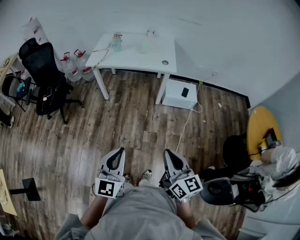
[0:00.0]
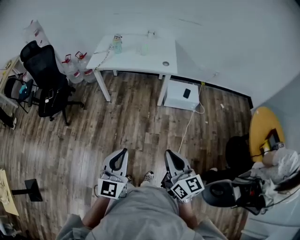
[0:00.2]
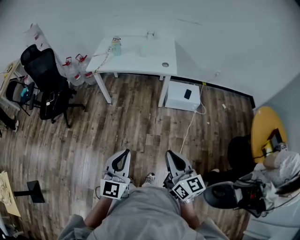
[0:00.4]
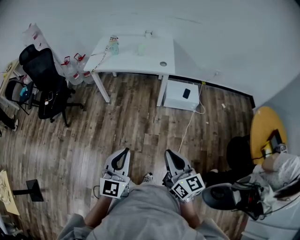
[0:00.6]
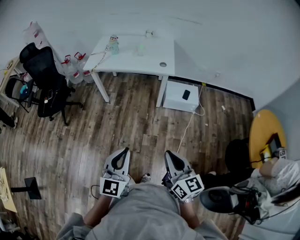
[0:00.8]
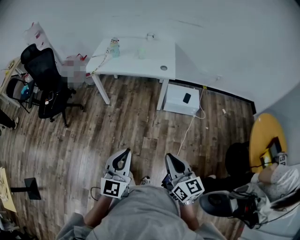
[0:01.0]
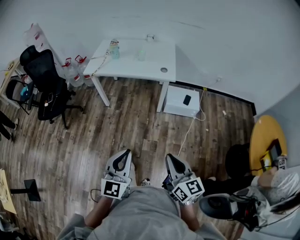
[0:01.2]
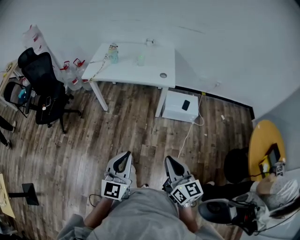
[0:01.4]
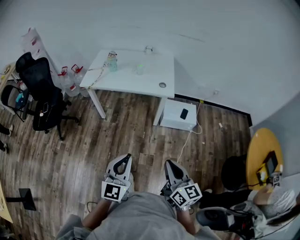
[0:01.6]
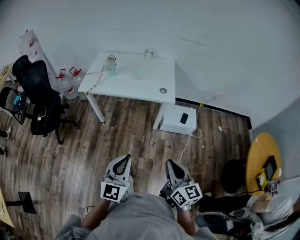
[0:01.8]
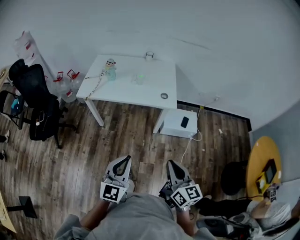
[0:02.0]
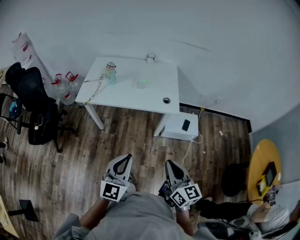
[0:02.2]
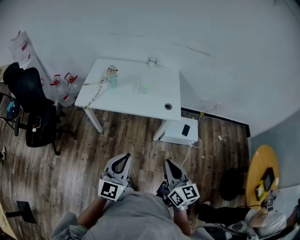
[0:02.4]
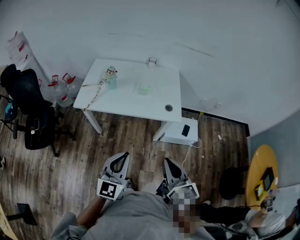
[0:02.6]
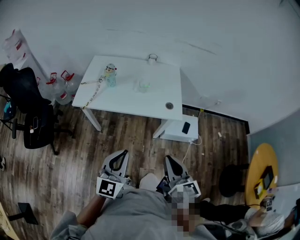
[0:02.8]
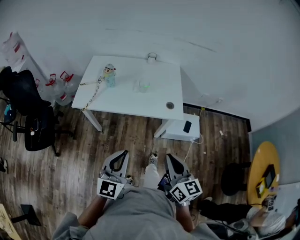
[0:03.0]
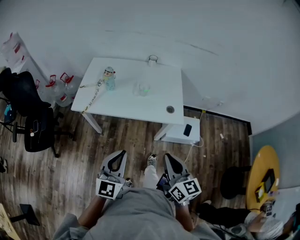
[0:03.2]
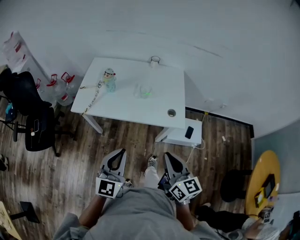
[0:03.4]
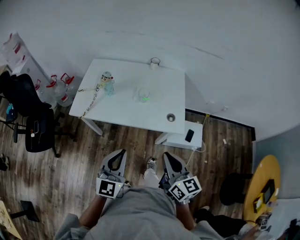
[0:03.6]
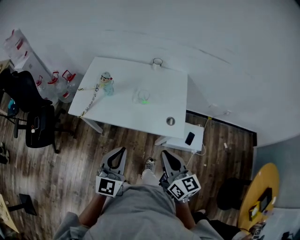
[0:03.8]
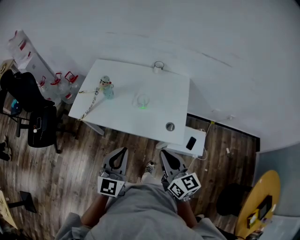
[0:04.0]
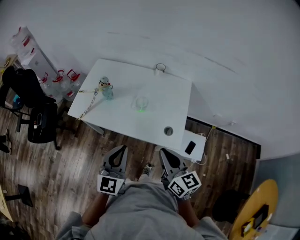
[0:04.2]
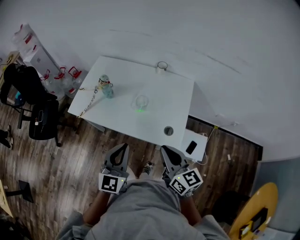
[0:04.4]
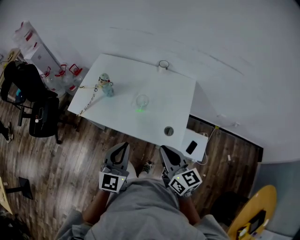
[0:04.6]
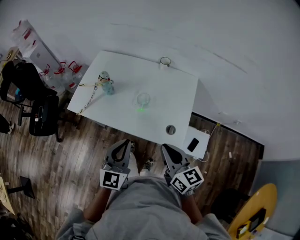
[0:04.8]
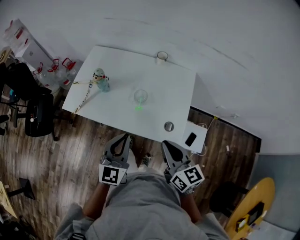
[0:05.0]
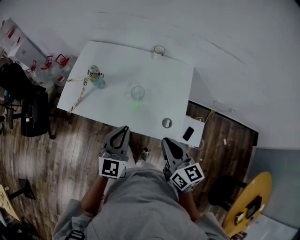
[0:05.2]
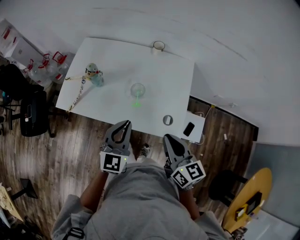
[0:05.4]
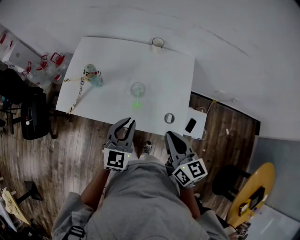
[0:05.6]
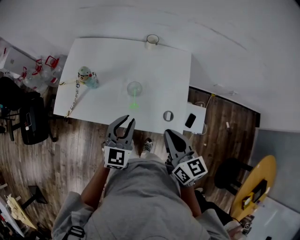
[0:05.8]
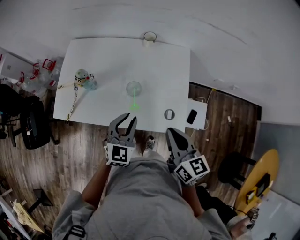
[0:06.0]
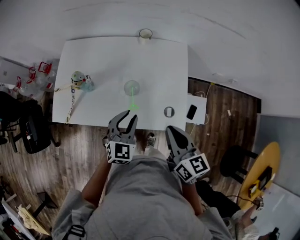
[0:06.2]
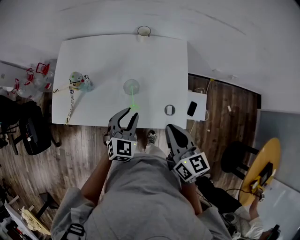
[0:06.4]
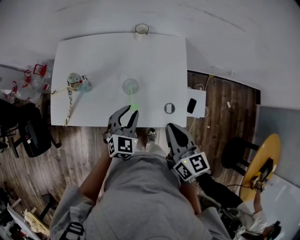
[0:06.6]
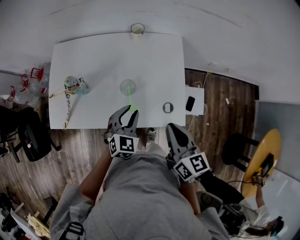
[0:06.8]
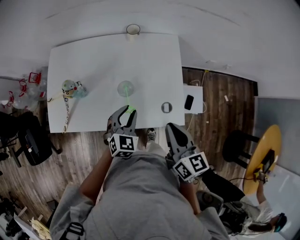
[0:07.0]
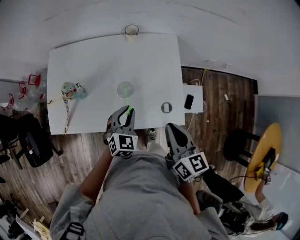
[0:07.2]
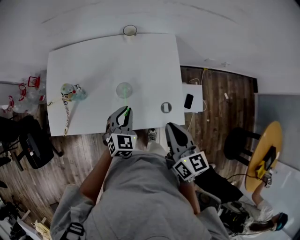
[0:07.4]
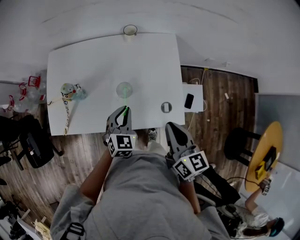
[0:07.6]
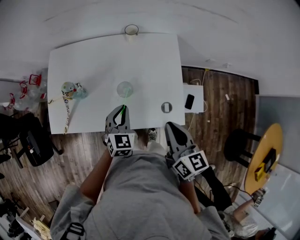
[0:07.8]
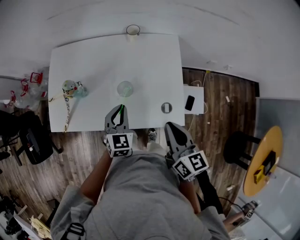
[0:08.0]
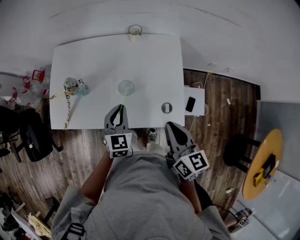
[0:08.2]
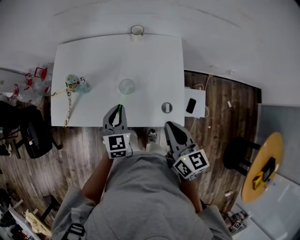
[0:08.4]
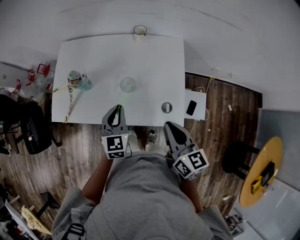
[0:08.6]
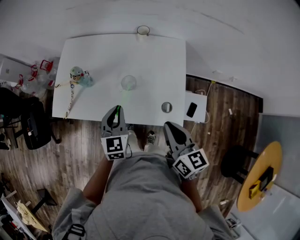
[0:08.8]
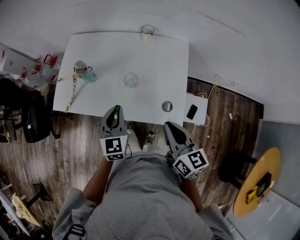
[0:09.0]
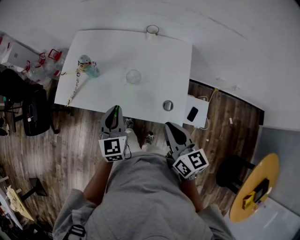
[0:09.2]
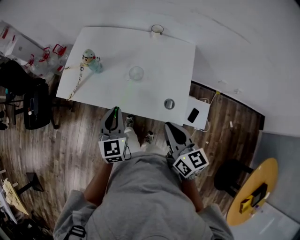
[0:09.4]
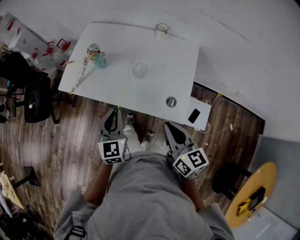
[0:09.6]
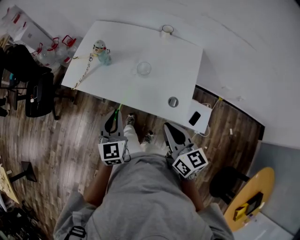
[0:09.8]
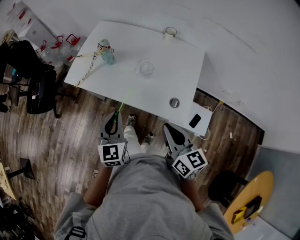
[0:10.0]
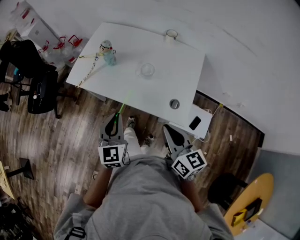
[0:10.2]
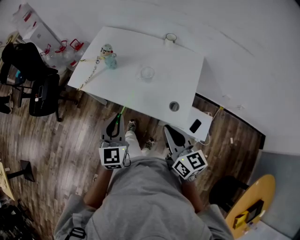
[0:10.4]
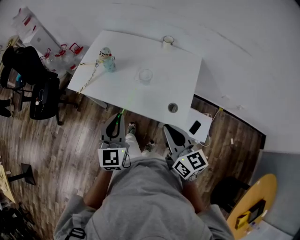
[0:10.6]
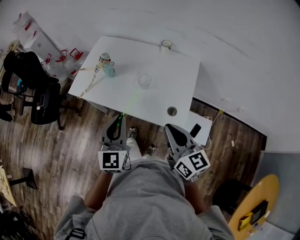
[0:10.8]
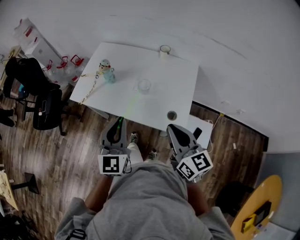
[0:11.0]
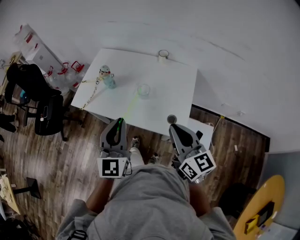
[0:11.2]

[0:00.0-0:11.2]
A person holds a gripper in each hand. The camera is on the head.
0:00.0 to 0:01.6: The grippers both shift forward and to the right by some 15 cm.
0:01.6 to 0:03.2: Both grippers move forward, about 25 cm.
0:03.2 to 0:04.8: The two grippers go about 20 cm forward and to the right. The right gripper rotates some 20 degrees.
0:04.8 to 0:06.4: The right gripper moves forward, roughly 5 cm, and turns by some 20 degrees; the left gripper travels forward and downward by about 15 cm, changes its angle by some 30 degrees, and opens.
0:06.4 to 0:08.0: The left gripper closes up.
0:08.0 to 0:09.6: The right gripper is displaced backward by roughly 5 cm, and rotates about 20 degrees. Meanwhile the left gripper heads backward, upward and to the left, covering approximately 15 cm, and swivels some 30 degrees.
0:09.6 to 0:11.2: The left gripper heads upward, covering about 15 cm, and rotates some 20 degrees; the right gripper is displaced upward by roughly 5 cm.

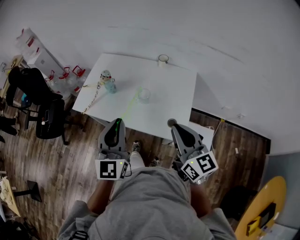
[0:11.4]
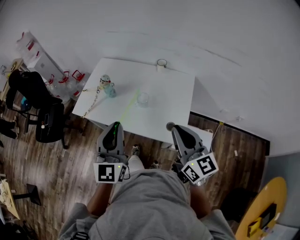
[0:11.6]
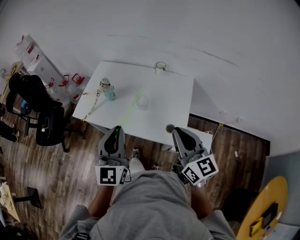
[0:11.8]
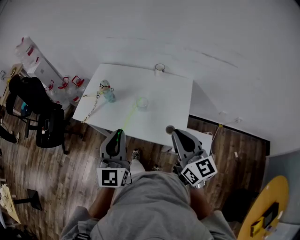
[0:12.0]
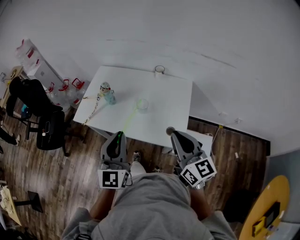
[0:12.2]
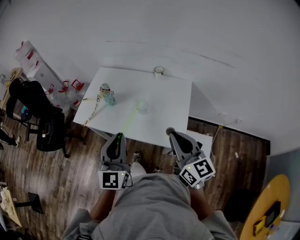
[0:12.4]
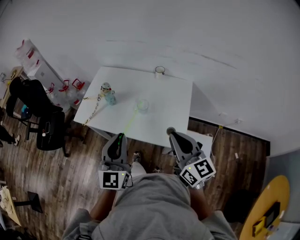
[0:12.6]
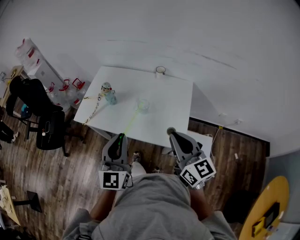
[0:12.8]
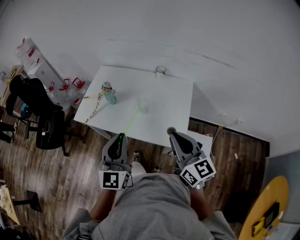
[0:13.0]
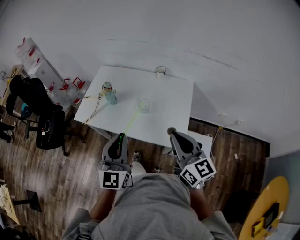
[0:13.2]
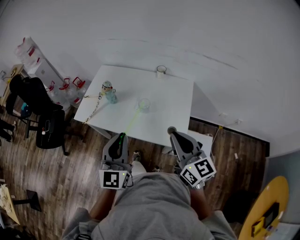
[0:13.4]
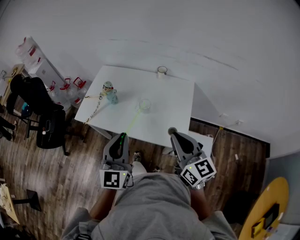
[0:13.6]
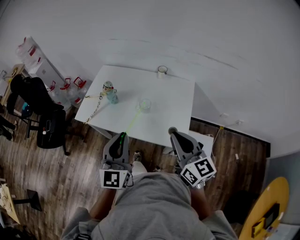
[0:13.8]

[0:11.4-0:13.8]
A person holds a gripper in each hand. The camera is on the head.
0:11.4 to 0:12.6: The grippers stay close to where they were, moving slightly.
0:12.6 to 0:13.8: Both grippers stay put.

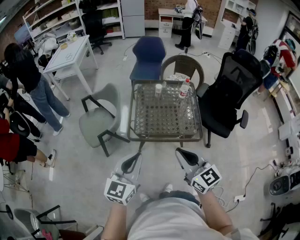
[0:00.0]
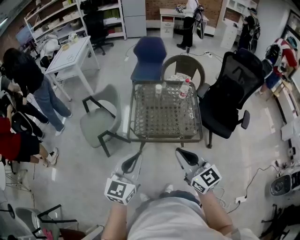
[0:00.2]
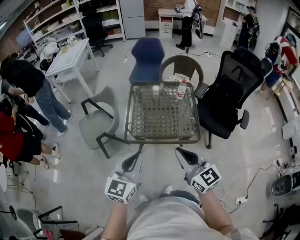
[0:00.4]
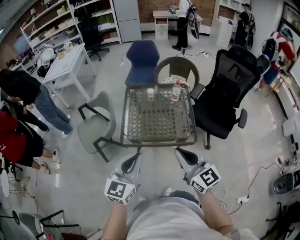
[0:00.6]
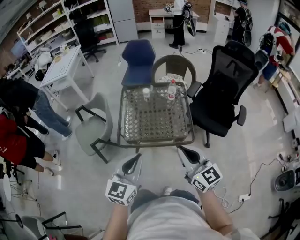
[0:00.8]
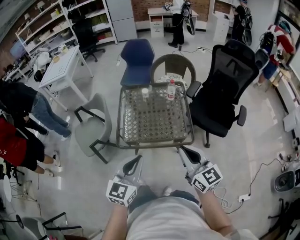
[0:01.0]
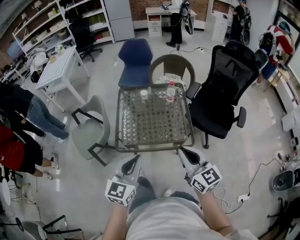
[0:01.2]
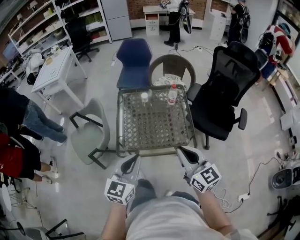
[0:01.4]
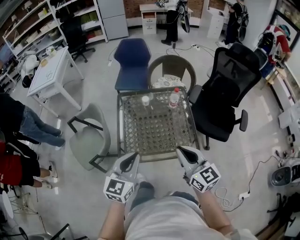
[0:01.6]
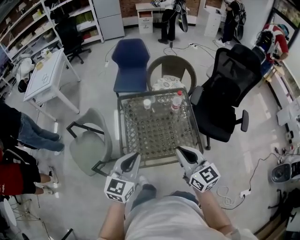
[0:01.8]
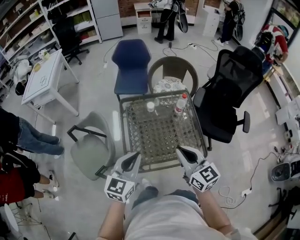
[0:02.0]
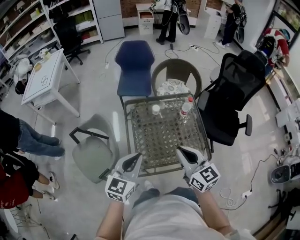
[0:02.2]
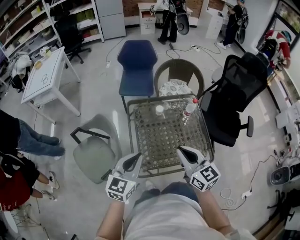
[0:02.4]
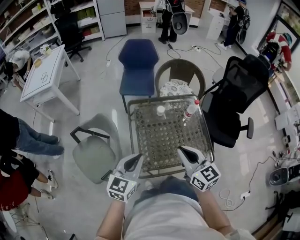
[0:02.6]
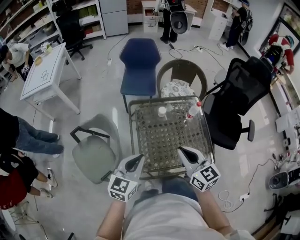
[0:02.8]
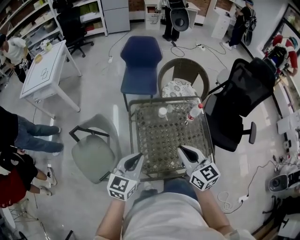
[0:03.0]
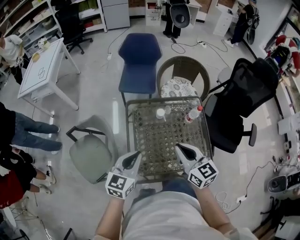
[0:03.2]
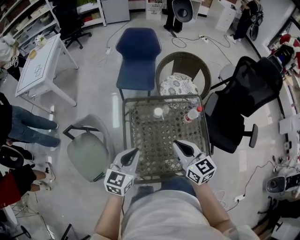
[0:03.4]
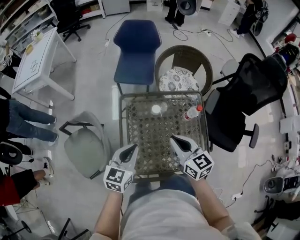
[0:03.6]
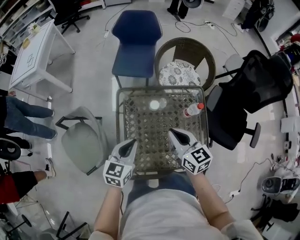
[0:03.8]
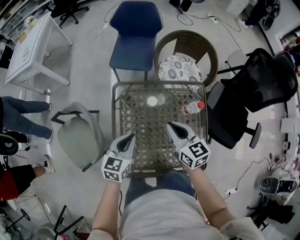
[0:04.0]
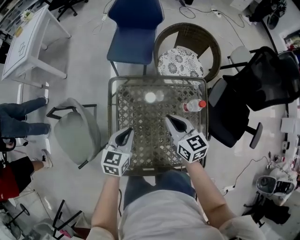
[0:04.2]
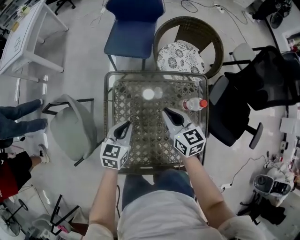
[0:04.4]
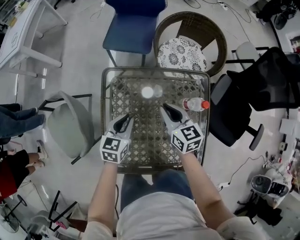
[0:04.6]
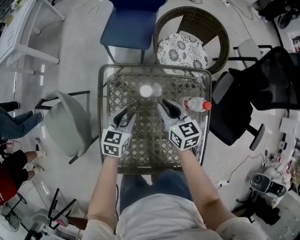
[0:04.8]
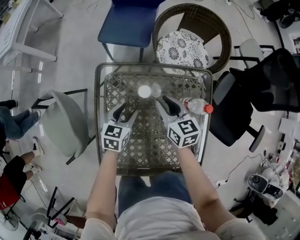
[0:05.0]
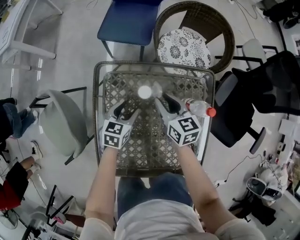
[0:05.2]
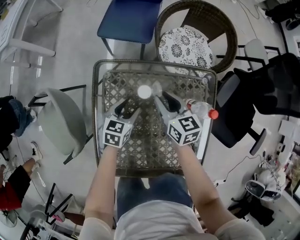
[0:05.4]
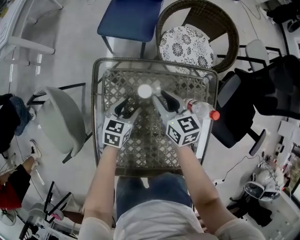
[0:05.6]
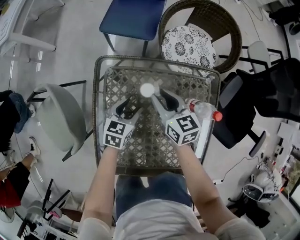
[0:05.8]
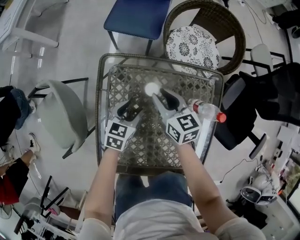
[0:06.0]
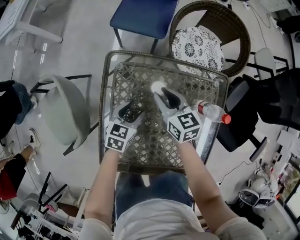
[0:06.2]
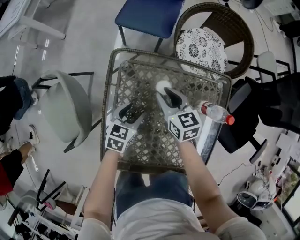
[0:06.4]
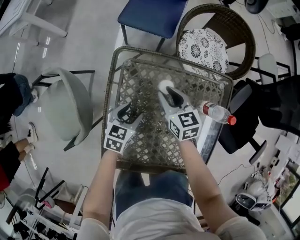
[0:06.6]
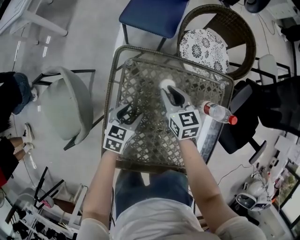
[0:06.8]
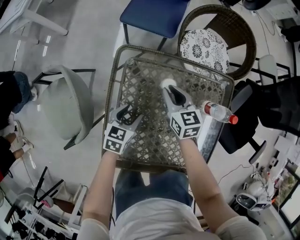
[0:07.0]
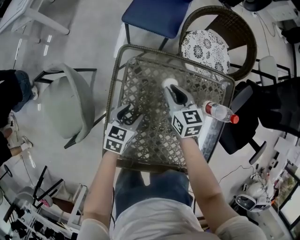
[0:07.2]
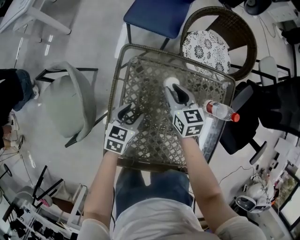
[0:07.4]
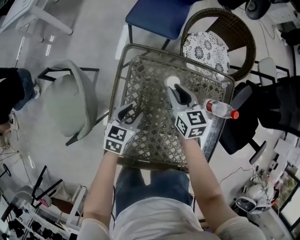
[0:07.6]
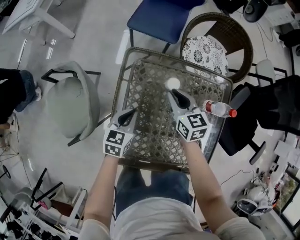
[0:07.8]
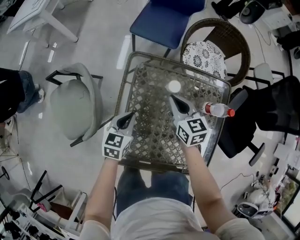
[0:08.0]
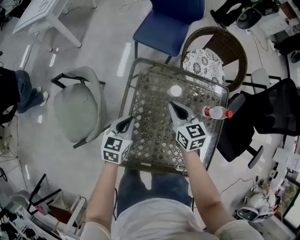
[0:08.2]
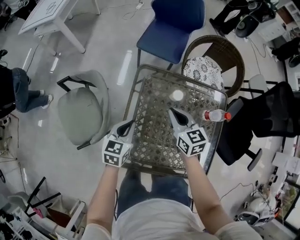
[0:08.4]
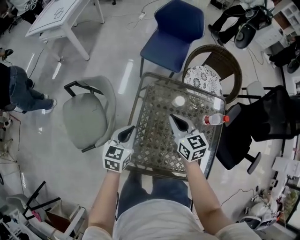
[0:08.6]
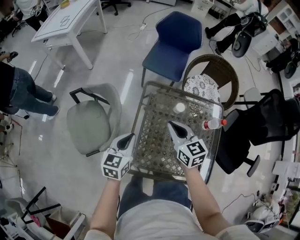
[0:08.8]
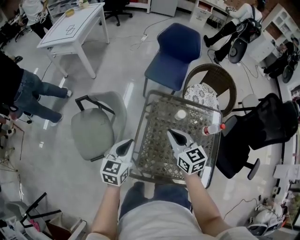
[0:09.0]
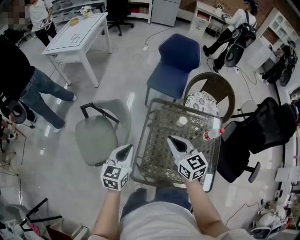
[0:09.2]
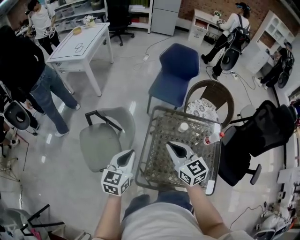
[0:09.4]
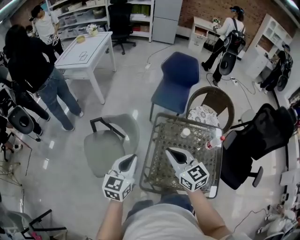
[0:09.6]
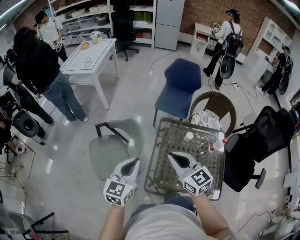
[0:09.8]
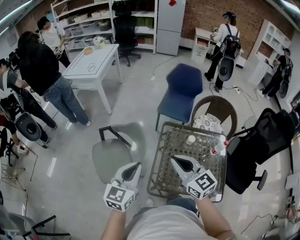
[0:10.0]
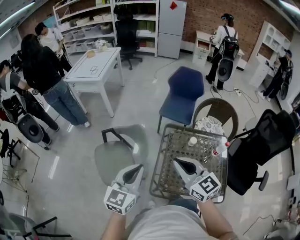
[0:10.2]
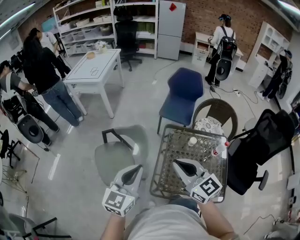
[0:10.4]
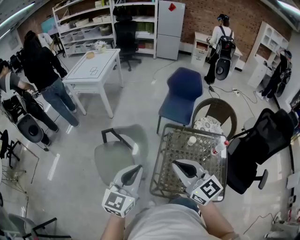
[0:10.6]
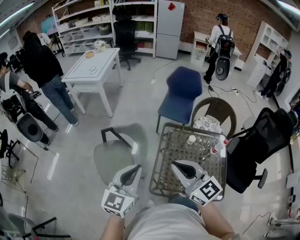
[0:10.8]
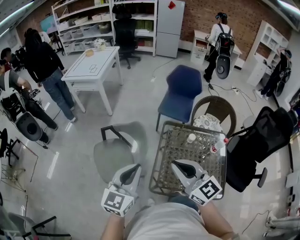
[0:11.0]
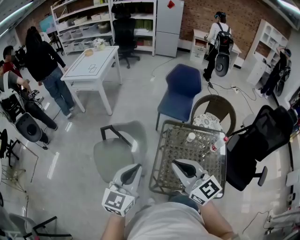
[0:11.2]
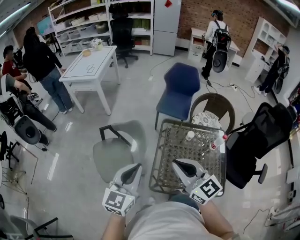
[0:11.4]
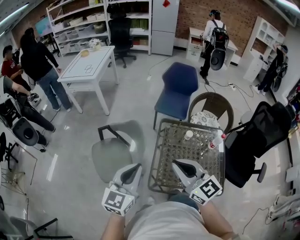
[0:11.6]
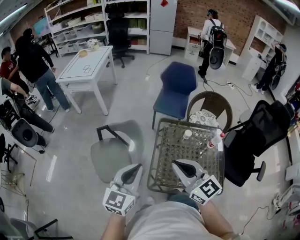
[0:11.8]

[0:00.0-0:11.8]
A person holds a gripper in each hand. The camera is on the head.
0:00.0 to 0:01.4: Both grippers travel together forward and to the right, approximately 15 cm.
0:01.4 to 0:03.0: The grippers both shift forward and to the left by approximately 30 cm.
0:03.0 to 0:04.4: The right gripper goes about 30 cm forward and downward. The left gripper moves downward, forward and to the right, about 30 cm, and rotates some 20 degrees.
0:04.4 to 0:06.0: Both grippers move downward and forward, about 15 cm. The right gripper opens up, while the left gripper opens its fingers.
0:06.0 to 0:07.4: The left gripper moves to the left and backward, about 10 cm.
0:07.4 to 0:08.8: The right gripper travels upward, backward and to the left by some 25 cm, and closes up. The left gripper goes roughly 25 cm upward and to the left, turns by some 20 degrees, and closes up.
0:08.8 to 0:10.4: The right gripper heads upward, backward and to the left, covering about 30 cm, and turns by approximately 30 degrees; the left gripper shifts some 30 cm upward, to the left and backward, and swivels some 20 degrees.
0:10.4 to 0:11.8: The grippers make only small movements.
